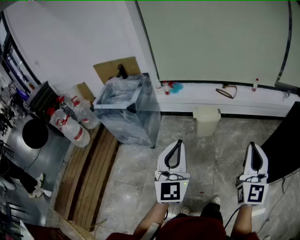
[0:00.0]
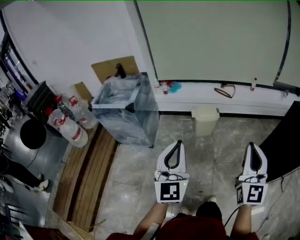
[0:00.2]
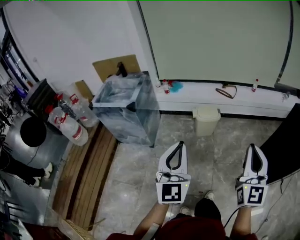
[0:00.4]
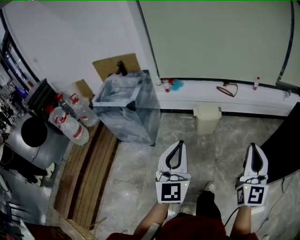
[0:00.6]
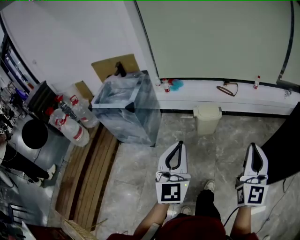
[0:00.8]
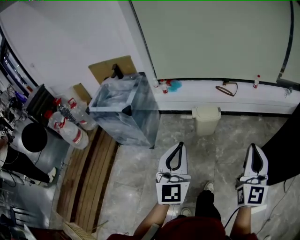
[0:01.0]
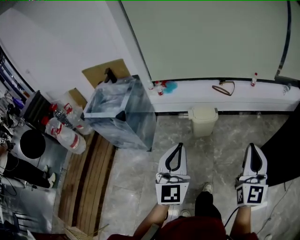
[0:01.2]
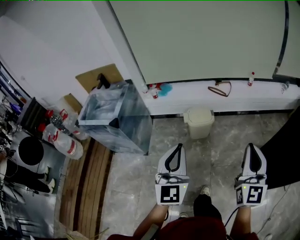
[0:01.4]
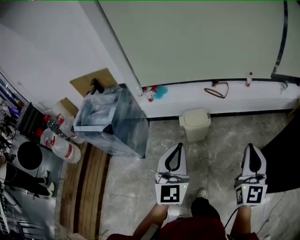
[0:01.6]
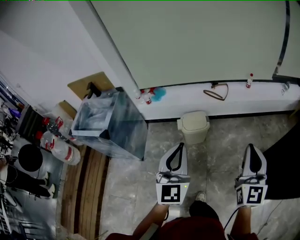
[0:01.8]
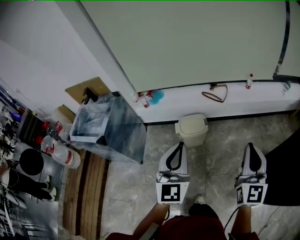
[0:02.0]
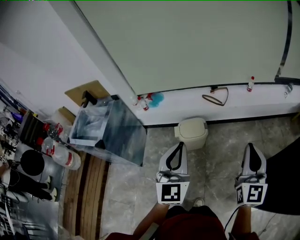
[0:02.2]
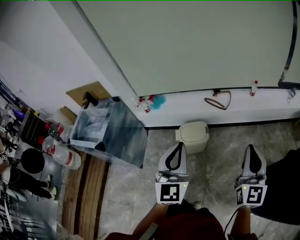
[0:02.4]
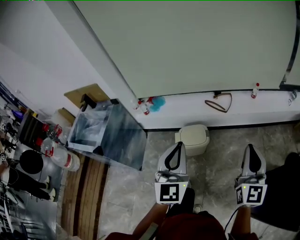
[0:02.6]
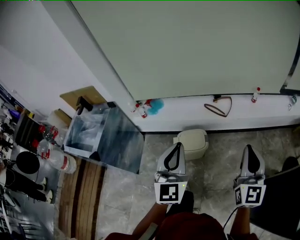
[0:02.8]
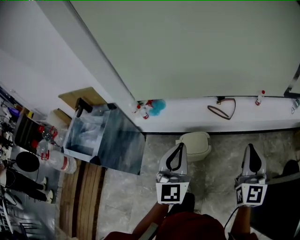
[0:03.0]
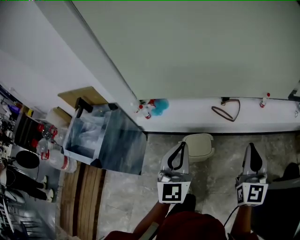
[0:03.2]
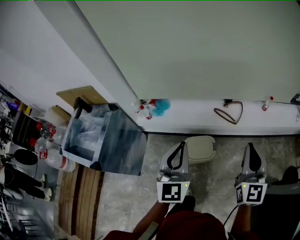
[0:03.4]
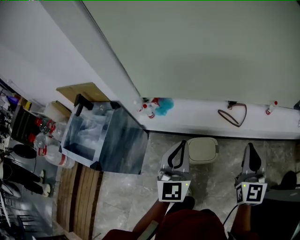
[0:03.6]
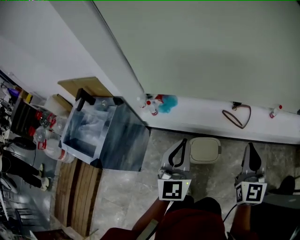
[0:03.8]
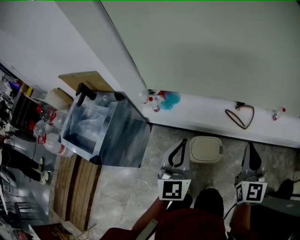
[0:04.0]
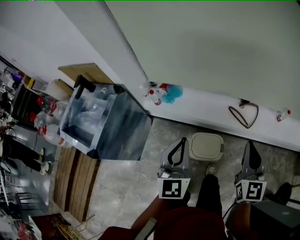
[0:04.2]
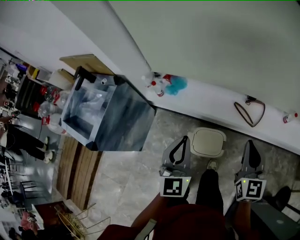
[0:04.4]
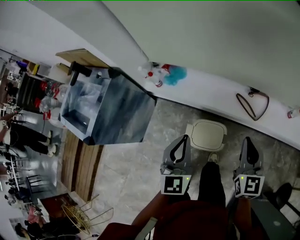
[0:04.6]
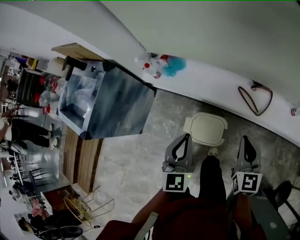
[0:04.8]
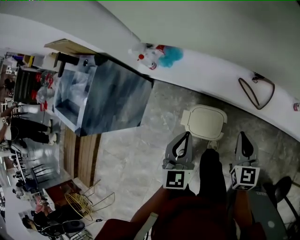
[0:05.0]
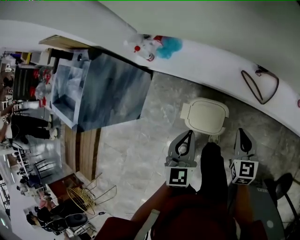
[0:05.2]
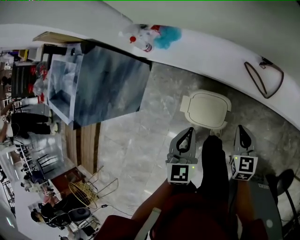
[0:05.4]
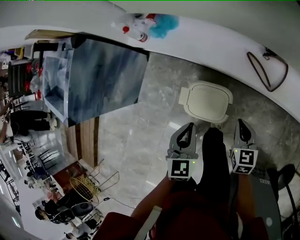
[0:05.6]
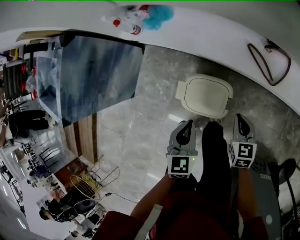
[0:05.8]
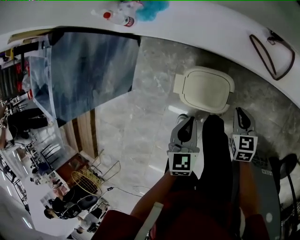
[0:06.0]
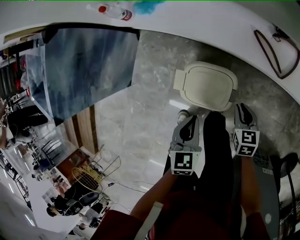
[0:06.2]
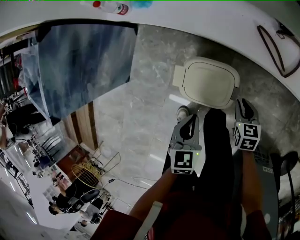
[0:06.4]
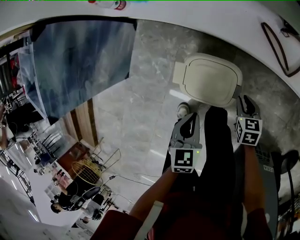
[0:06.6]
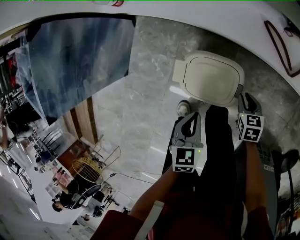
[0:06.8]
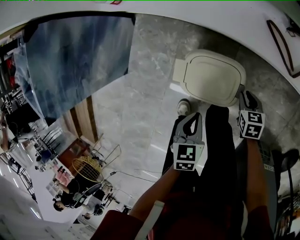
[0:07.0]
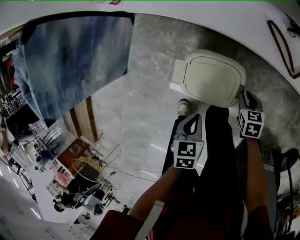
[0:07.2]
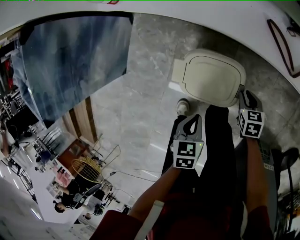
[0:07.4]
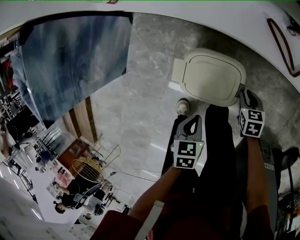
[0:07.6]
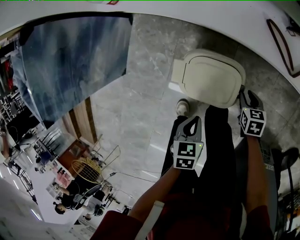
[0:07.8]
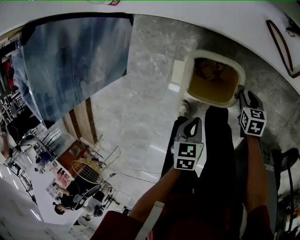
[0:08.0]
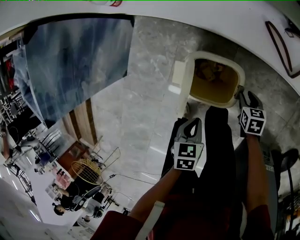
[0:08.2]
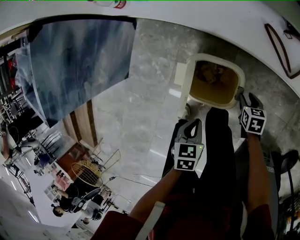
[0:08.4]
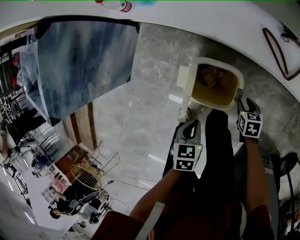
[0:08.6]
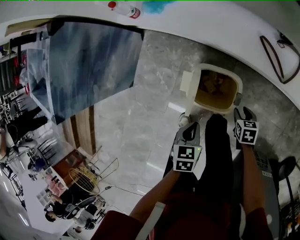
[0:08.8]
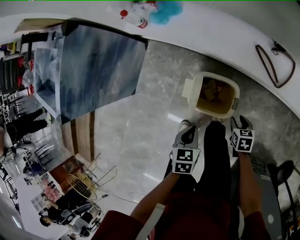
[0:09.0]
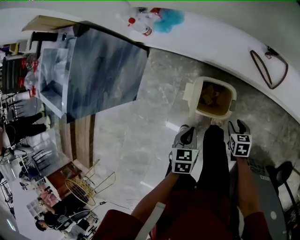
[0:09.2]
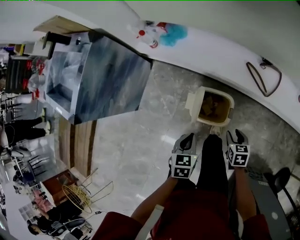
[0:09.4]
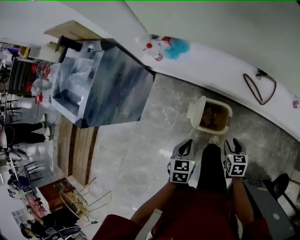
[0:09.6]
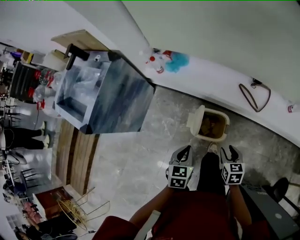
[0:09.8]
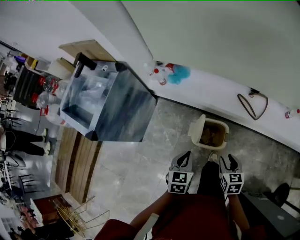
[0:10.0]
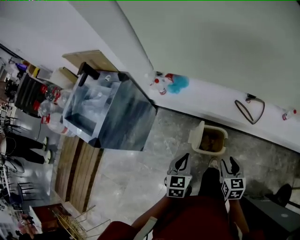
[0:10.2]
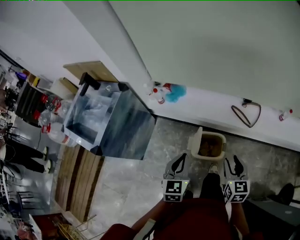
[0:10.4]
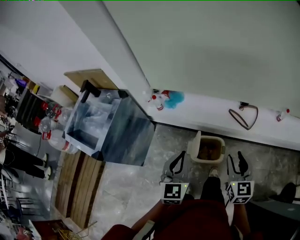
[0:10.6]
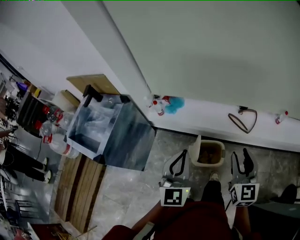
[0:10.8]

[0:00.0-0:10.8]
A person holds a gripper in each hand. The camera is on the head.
0:00.0 to 0:01.6: Both grippers move forward and to the right, roughly 25 cm.
0:01.6 to 0:03.0: Both grippers move forward, some 30 cm.
0:03.0 to 0:04.6: The grippers both shift forward and downward by about 30 cm. The left gripper changes its angle by roughly 20 degrees, while the right gripper rotates roughly 30 degrees.
0:04.6 to 0:06.2: Both grippers travel together downward, roughly 35 cm. The left gripper tips its fingers downward by some 40 degrees, while the right gripper tips its fingers downward by roughly 40 degrees.
0:06.2 to 0:07.8: The left gripper travels downward and backward by approximately 10 cm, and rotates about 30 degrees, while the right gripper shifts approximately 10 cm downward.
0:07.8 to 0:09.2: The left gripper goes approximately 10 cm upward and to the left, while the right gripper travels upward, backward and to the left by roughly 15 cm.
0:09.2 to 0:10.8: Both grippers move upward, roughly 40 cm. The left gripper angles its fingers upward, by roughly 60 degrees; the right gripper tilts its fingers roughly 60 degrees upward.

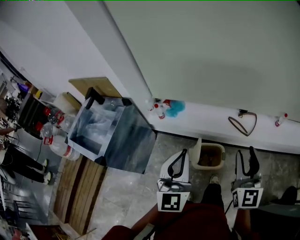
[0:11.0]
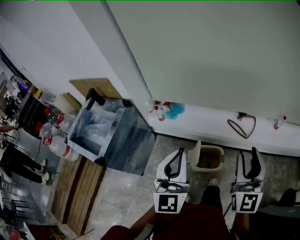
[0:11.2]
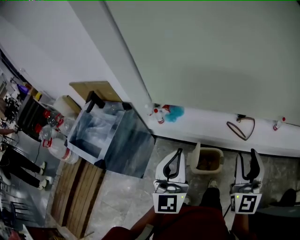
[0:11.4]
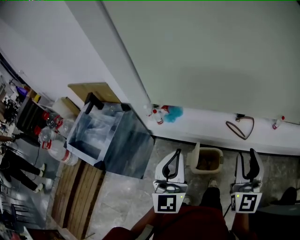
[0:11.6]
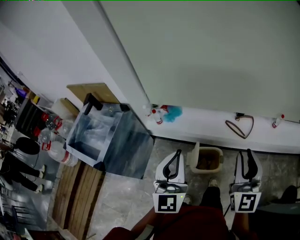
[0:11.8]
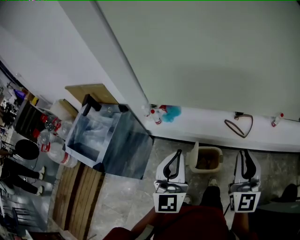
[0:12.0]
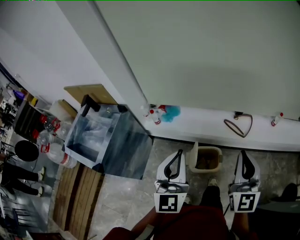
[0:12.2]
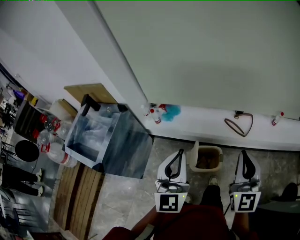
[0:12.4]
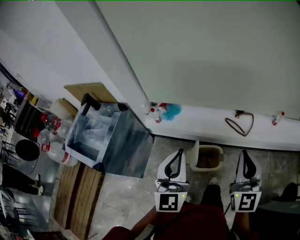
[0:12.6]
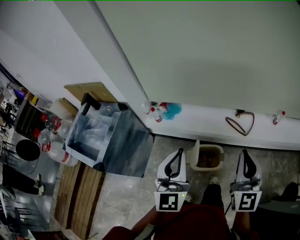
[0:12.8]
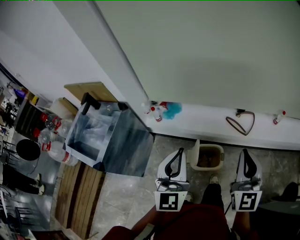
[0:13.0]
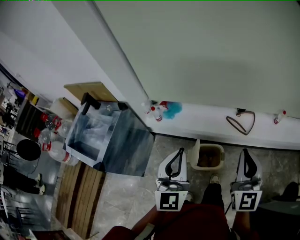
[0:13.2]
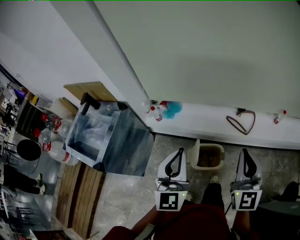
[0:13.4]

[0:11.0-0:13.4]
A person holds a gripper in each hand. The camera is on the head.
0:11.0 to 0:12.2: The right gripper closes its fingers.
0:12.2 to 0:13.4: The grippers move only a little.

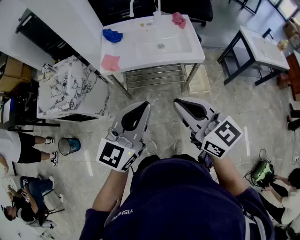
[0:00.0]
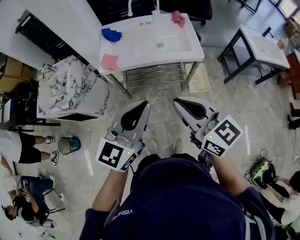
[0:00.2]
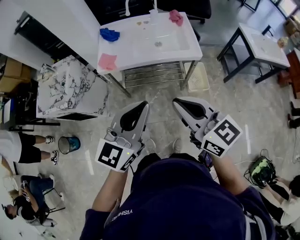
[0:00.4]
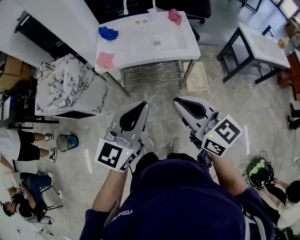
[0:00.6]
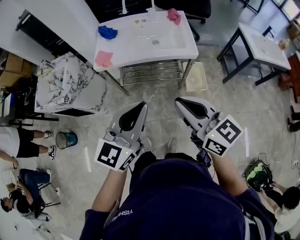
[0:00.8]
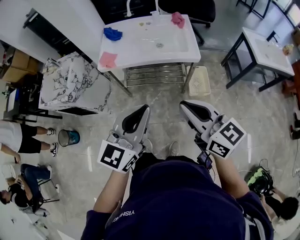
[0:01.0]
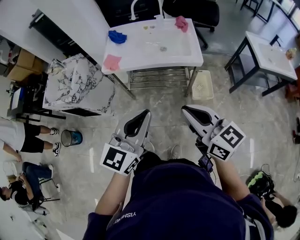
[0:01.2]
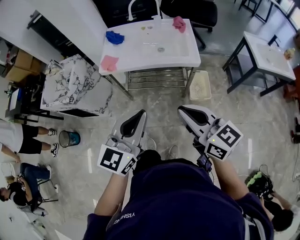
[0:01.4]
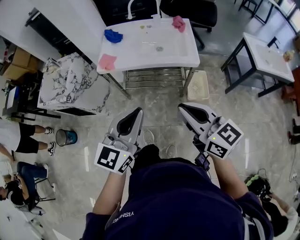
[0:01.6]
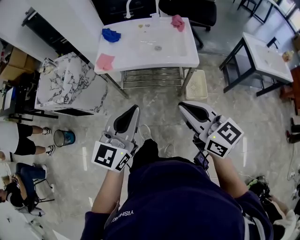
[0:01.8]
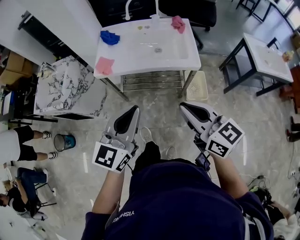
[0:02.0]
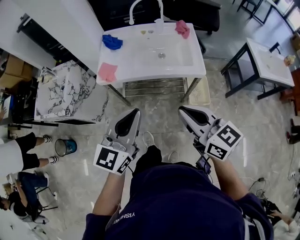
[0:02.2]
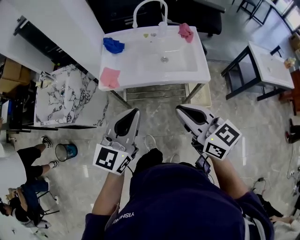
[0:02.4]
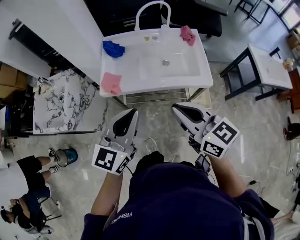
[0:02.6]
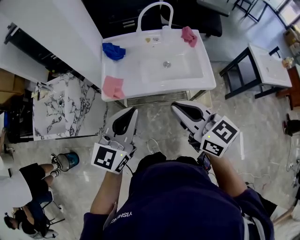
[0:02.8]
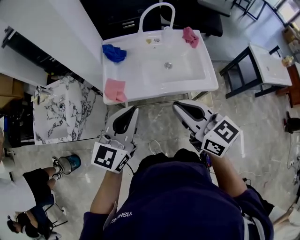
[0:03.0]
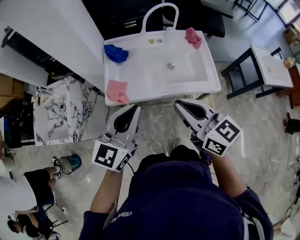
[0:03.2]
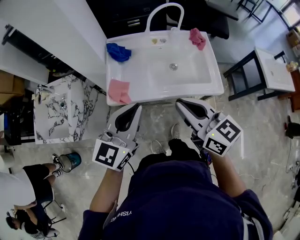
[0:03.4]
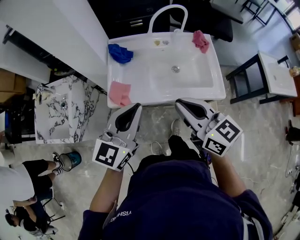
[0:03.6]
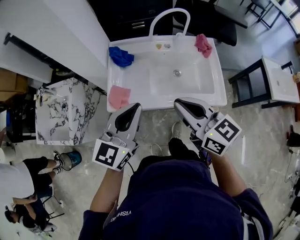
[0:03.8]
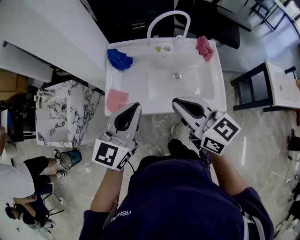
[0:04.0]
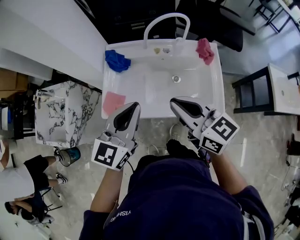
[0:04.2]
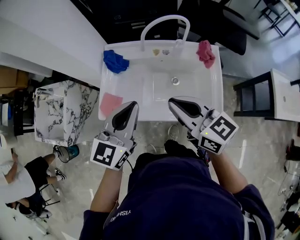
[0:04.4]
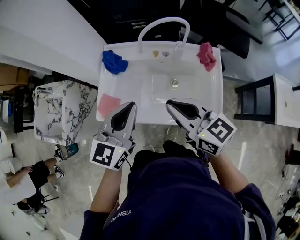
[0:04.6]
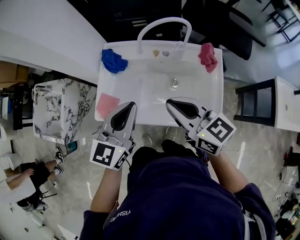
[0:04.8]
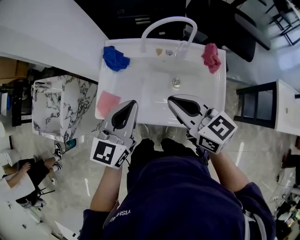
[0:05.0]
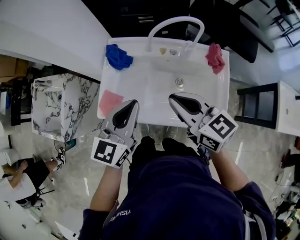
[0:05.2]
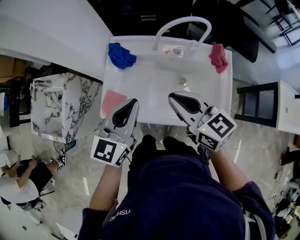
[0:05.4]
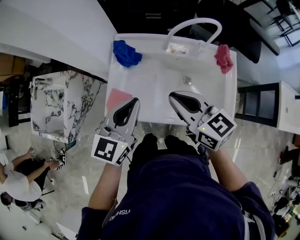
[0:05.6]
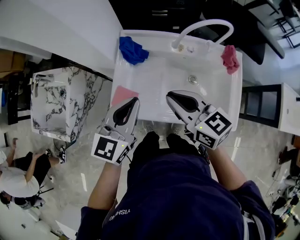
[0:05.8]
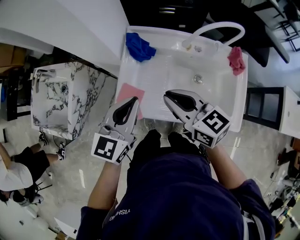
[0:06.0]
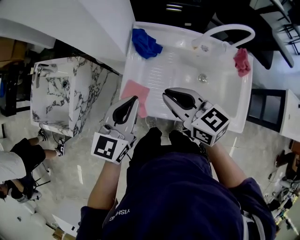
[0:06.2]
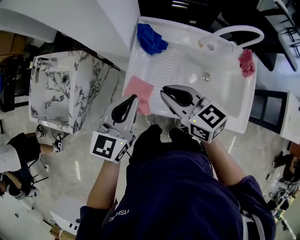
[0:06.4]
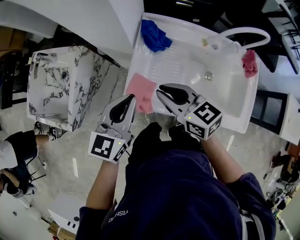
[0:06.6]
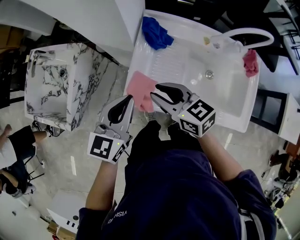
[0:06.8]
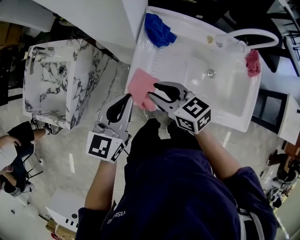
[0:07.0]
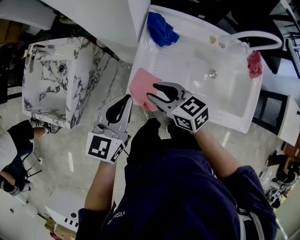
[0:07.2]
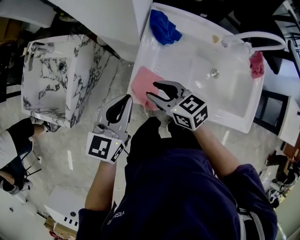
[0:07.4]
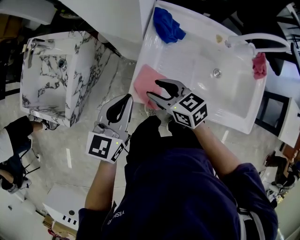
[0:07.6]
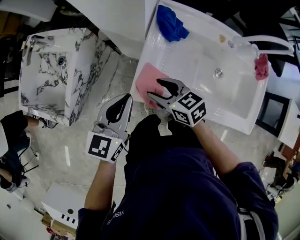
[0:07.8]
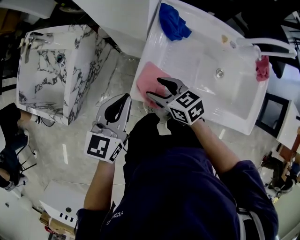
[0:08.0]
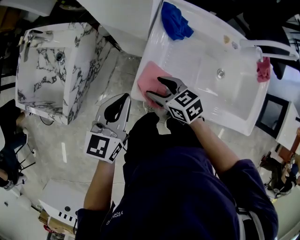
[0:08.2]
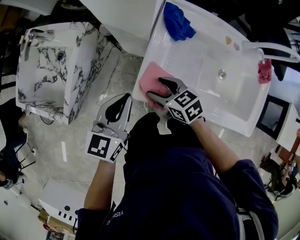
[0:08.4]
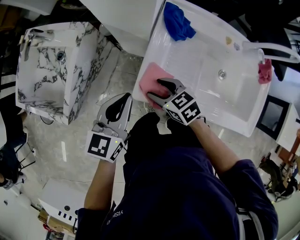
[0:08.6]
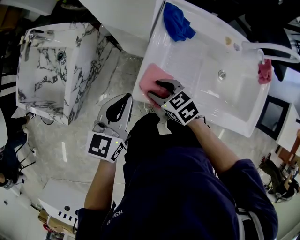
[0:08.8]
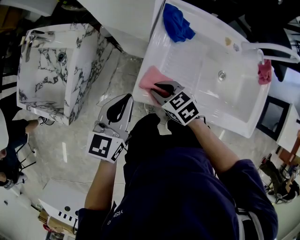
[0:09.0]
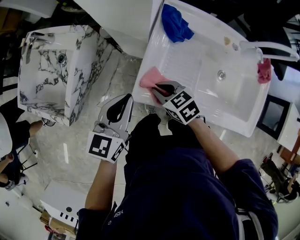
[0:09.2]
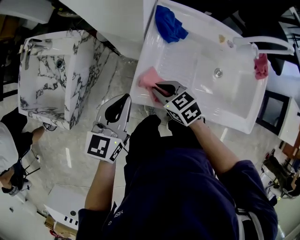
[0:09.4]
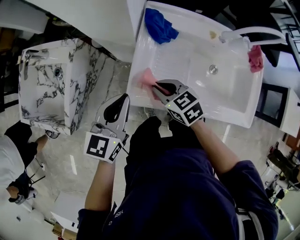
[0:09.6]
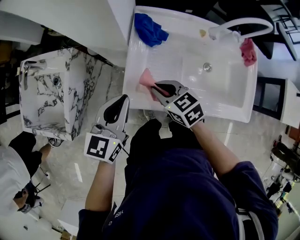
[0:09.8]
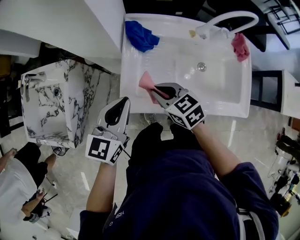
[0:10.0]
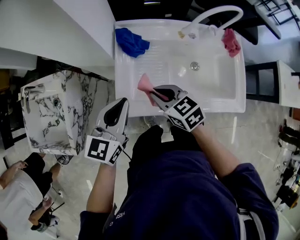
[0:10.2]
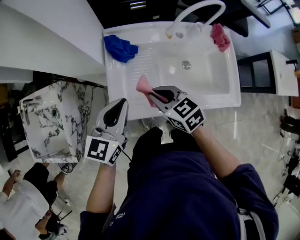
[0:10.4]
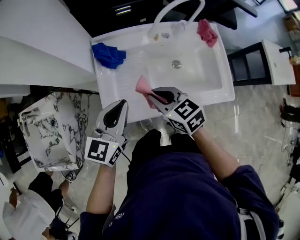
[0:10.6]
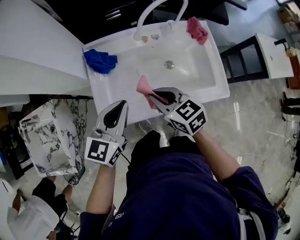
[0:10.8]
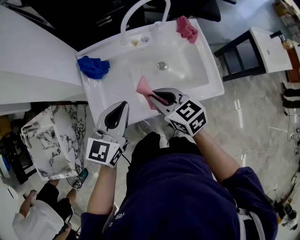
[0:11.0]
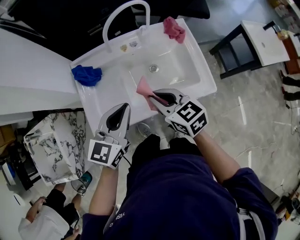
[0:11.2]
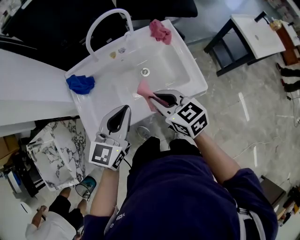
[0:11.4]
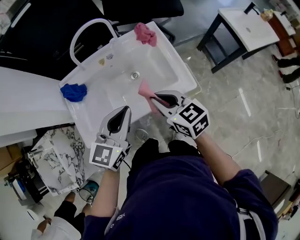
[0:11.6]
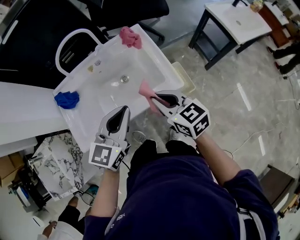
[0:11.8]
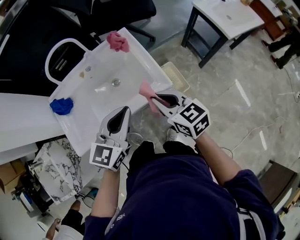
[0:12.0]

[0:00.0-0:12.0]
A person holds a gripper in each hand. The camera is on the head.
0:00.0 to 0:01.6: The left gripper moves to the right, roughly 5 cm. The right gripper goes roughly 10 cm to the right.
0:01.6 to 0:03.0: The grippers both shift forward and to the left by approximately 30 cm.
0:03.0 to 0:04.4: The right gripper heads forward, covering roughly 20 cm. Meanwhile the left gripper travels forward and to the right by roughly 20 cm.
0:04.4 to 0:06.0: Both grippers travel together to the left, forward and downward, roughly 15 cm.
0:06.0 to 0:07.6: The left gripper travels to the left and downward by some 15 cm; the right gripper travels downward and to the left by approximately 20 cm, and opens.
0:07.6 to 0:09.0: The right gripper is displaced downward by some 5 cm, and closes.
0:09.0 to 0:10.4: Both grippers move to the right and upward, about 15 cm. The right gripper changes its angle by roughly 30 degrees. The left gripper rotates about 20 degrees.
0:10.4 to 0:12.0: The right gripper shifts by some 40 cm, and turns by about 30 degrees; the left gripper shifts by approximately 40 cm, and turns by about 30 degrees.
